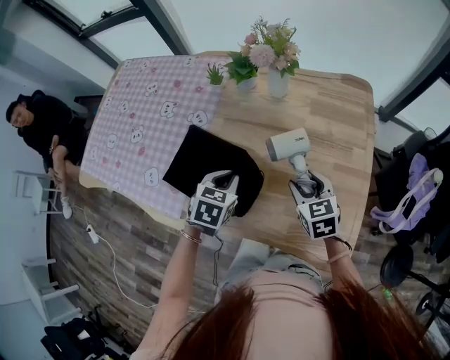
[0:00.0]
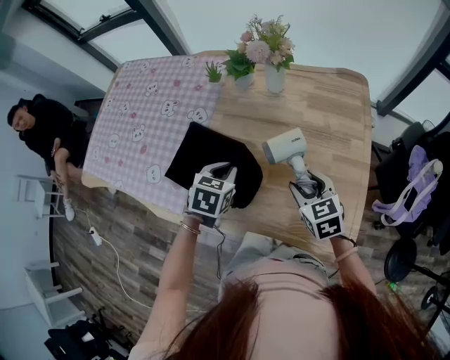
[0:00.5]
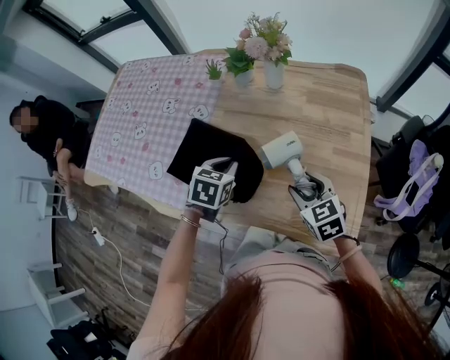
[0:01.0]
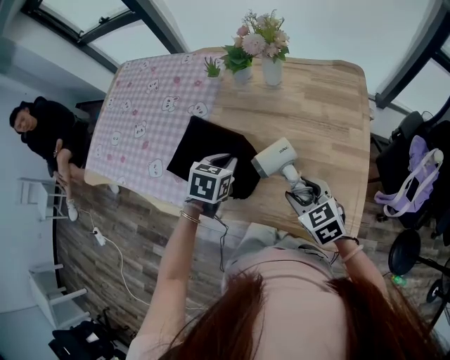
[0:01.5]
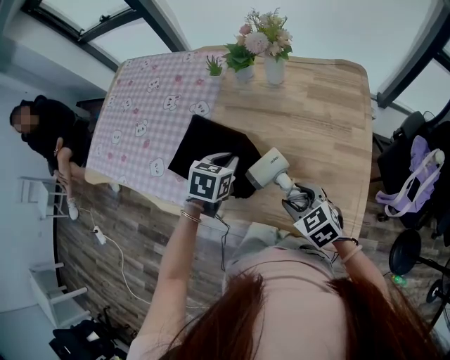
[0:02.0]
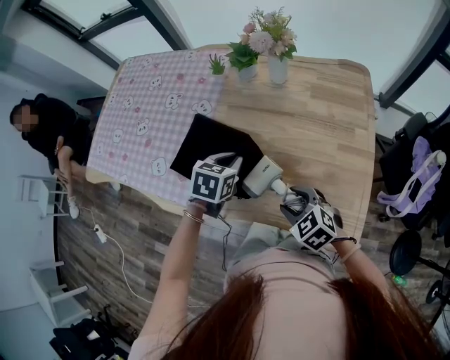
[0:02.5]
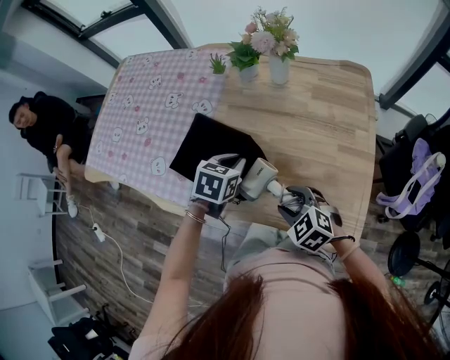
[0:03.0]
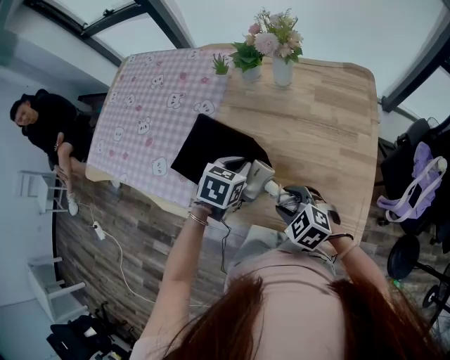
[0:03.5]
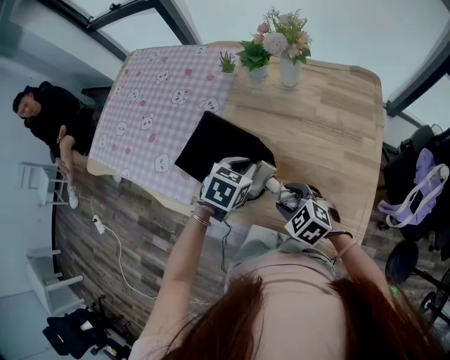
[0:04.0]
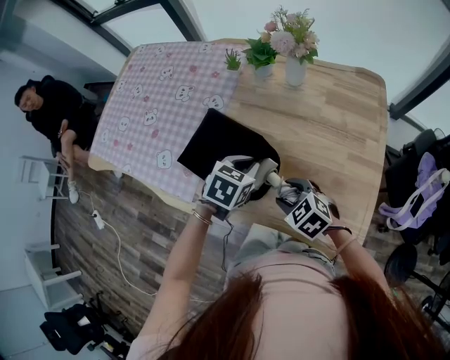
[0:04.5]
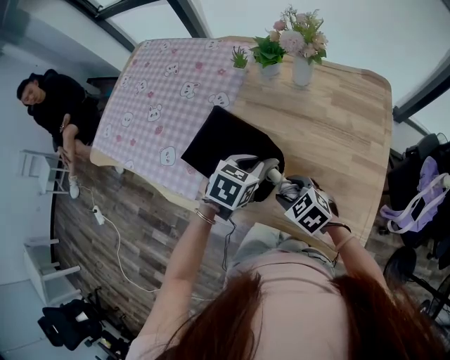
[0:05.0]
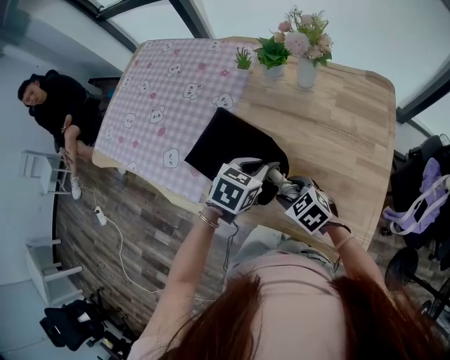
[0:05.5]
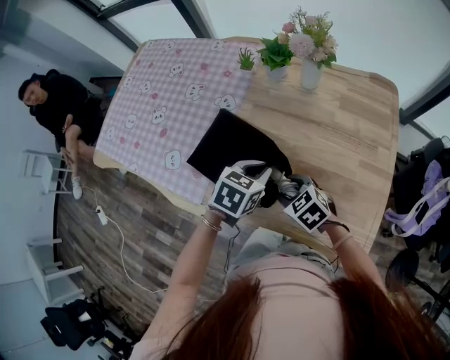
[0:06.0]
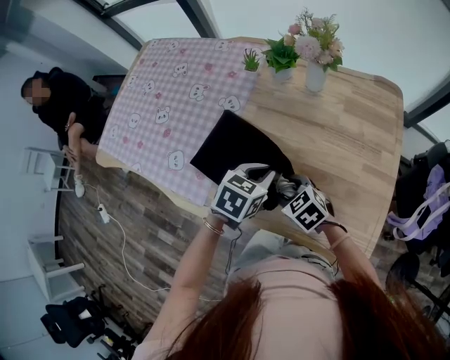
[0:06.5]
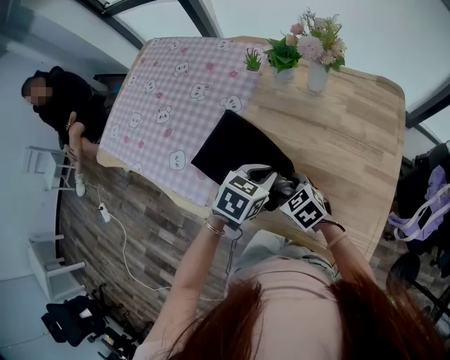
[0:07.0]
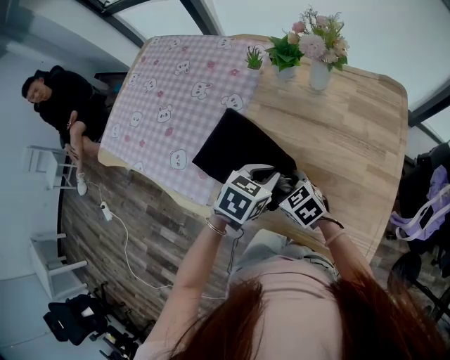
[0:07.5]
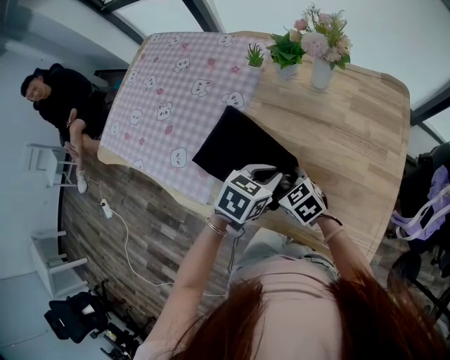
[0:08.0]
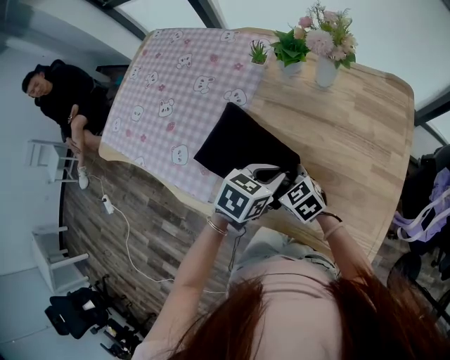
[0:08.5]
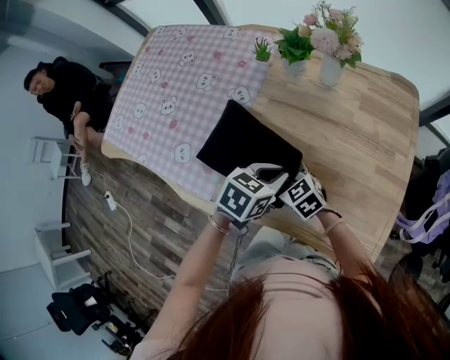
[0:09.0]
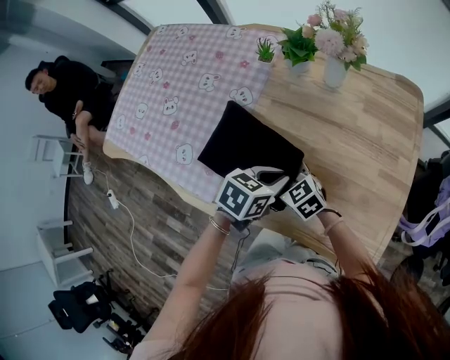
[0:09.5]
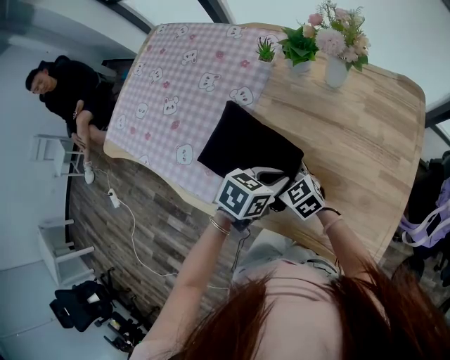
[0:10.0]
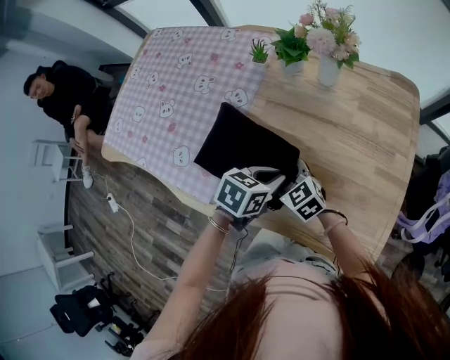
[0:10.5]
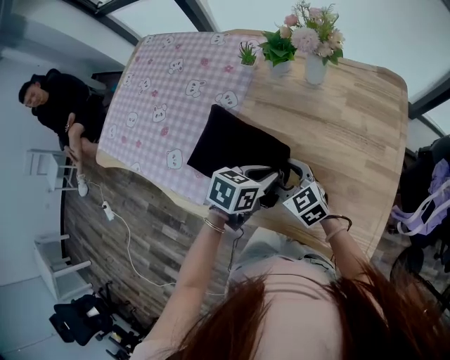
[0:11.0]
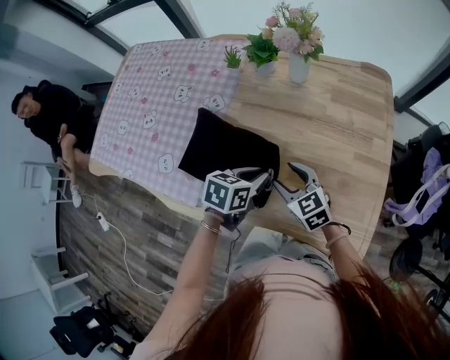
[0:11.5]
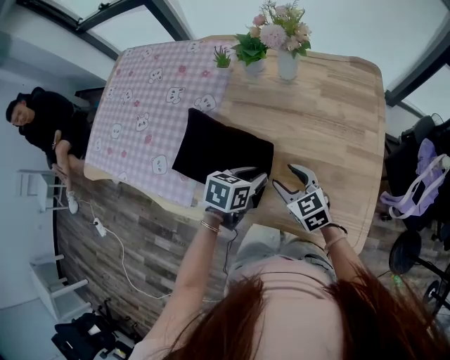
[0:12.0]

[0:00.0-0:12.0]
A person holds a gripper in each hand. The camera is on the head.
0:00.0 to 0:02.0: The right gripper is displaced backward by roughly 10 cm, and changes its angle by approximately 20 degrees.
0:02.0 to 0:04.0: The right gripper ends up roughly 5 cm from where it was.
0:04.0 to 0:06.0: The right gripper heads forward, covering approximately 5 cm.
0:06.0 to 0:08.0: The right gripper shifts by some 5 cm.
0:08.0 to 0:10.0: The right gripper shifts by about 5 cm.
0:10.0 to 0:12.0: The right gripper moves to the right, approximately 15 cm.

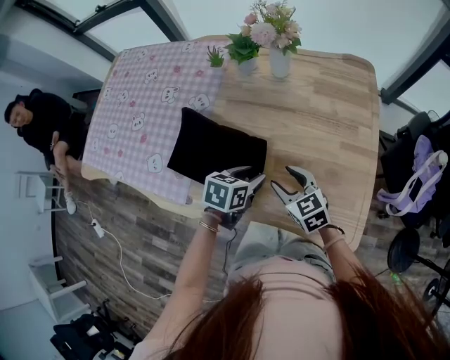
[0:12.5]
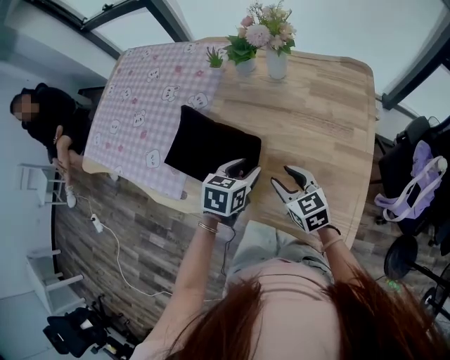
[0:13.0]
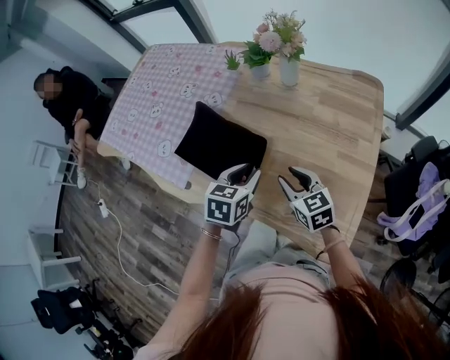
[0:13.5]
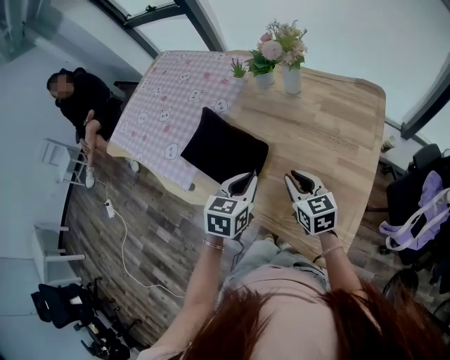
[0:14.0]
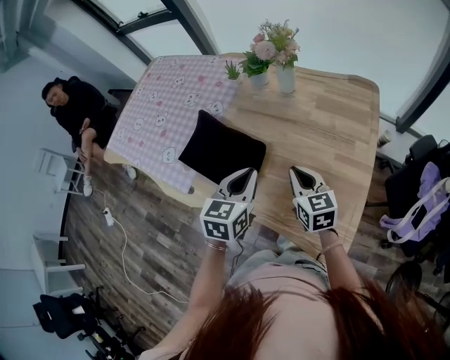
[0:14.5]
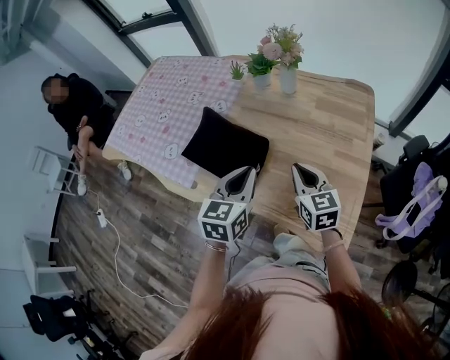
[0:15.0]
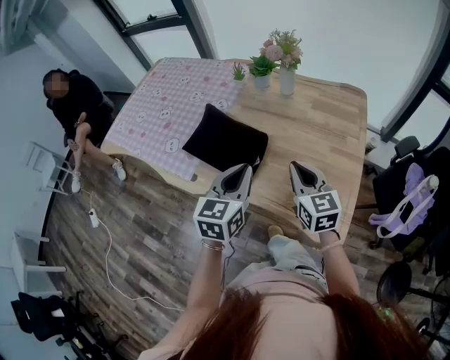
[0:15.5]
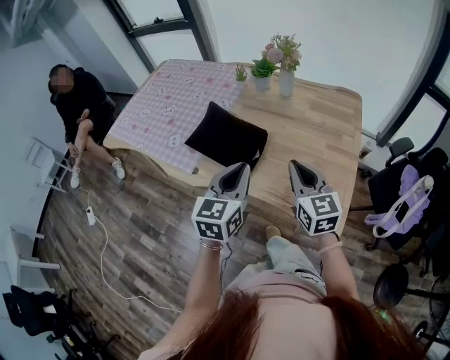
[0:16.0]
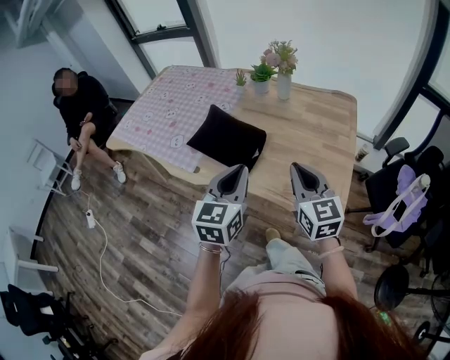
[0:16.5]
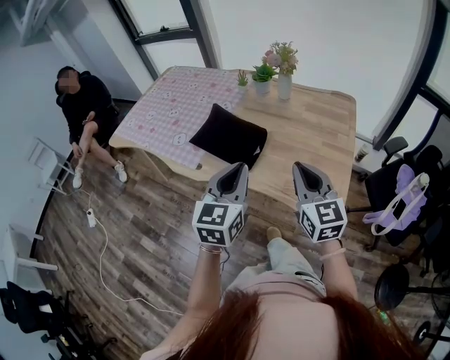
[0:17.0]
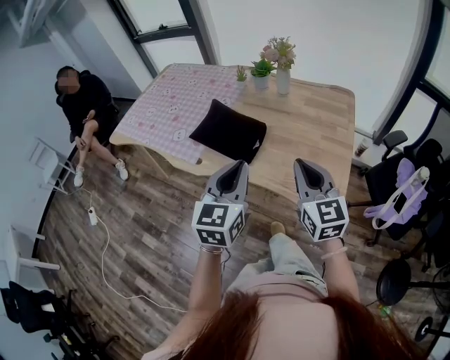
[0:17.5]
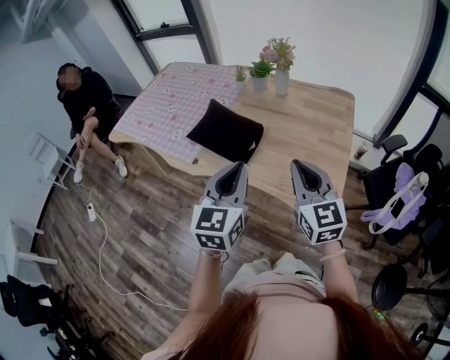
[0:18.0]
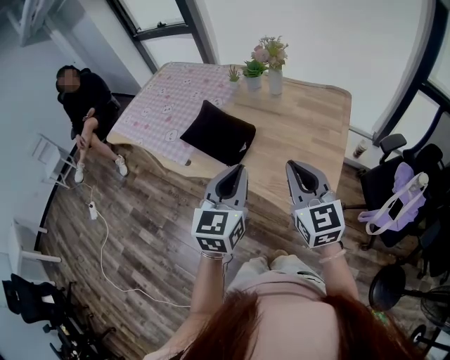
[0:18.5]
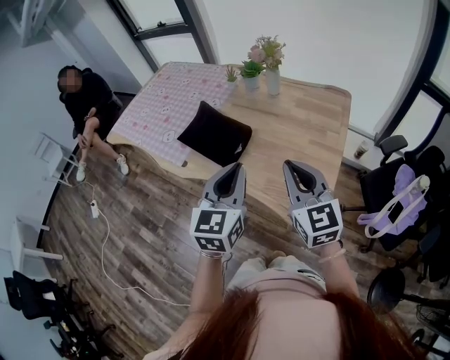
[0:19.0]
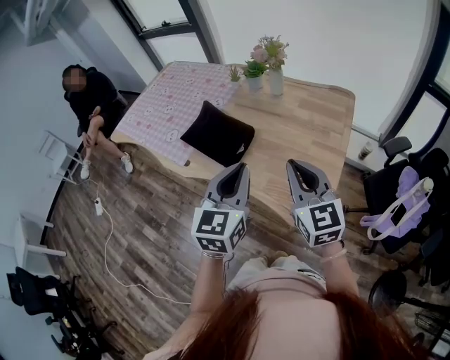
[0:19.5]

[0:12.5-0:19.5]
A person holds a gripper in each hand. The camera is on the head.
0:12.5 to 0:14.5: The right gripper goes about 10 cm to the right and upward, and closes. The left gripper heads upward, covering approximately 15 cm, swivels roughly 40 degrees, and closes.
0:14.5 to 0:16.0: The right gripper heads backward and upward, covering approximately 15 cm. The left gripper travels backward, upward and to the left by about 15 cm.
0:16.0 to 0:17.5: The left gripper is displaced backward by some 10 cm. The right gripper shifts about 10 cm backward and upward.
0:17.5 to 0:19.5: Both grippers travel together to the right, about 10 cm.

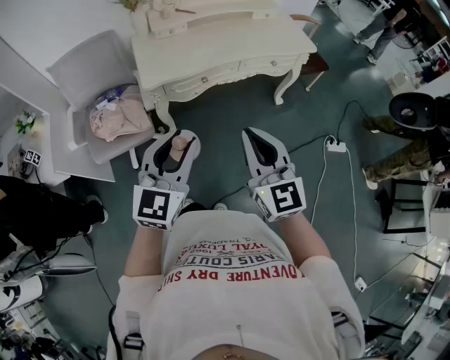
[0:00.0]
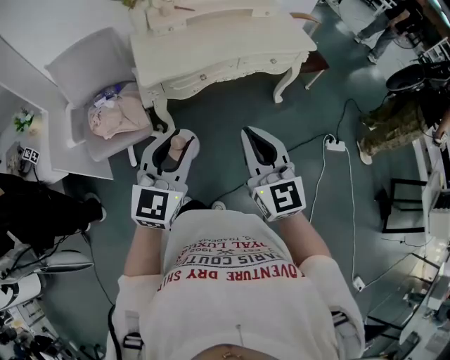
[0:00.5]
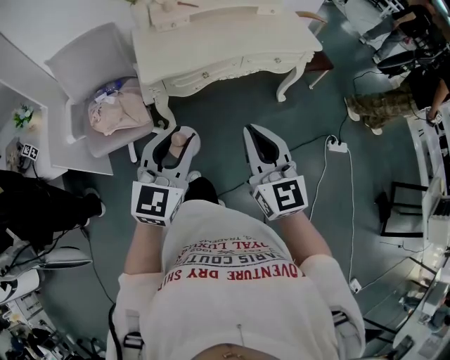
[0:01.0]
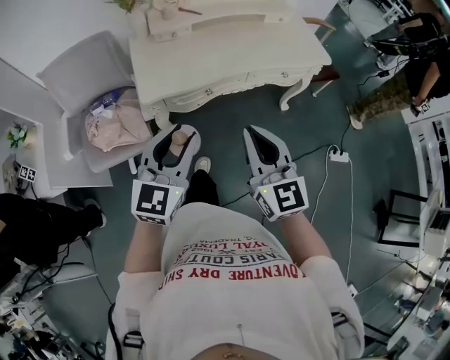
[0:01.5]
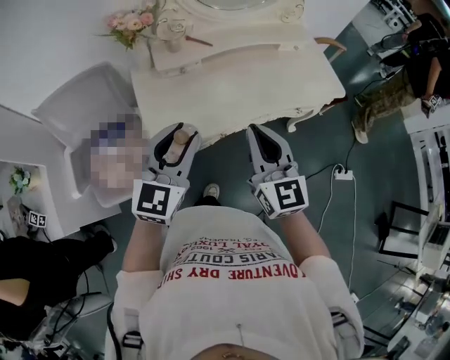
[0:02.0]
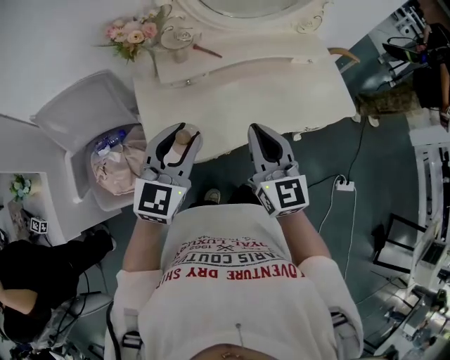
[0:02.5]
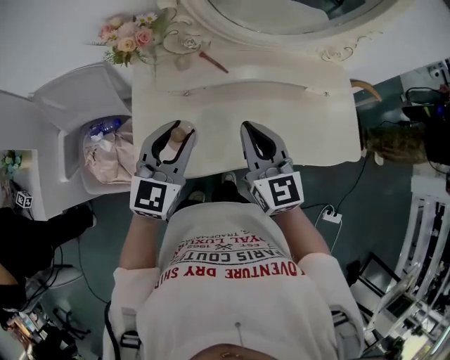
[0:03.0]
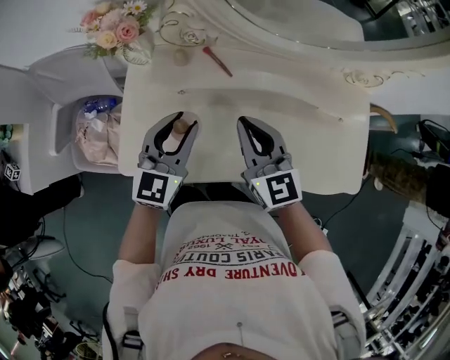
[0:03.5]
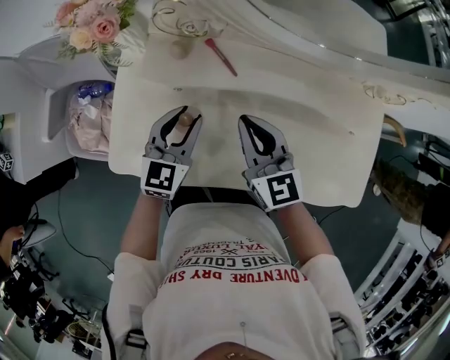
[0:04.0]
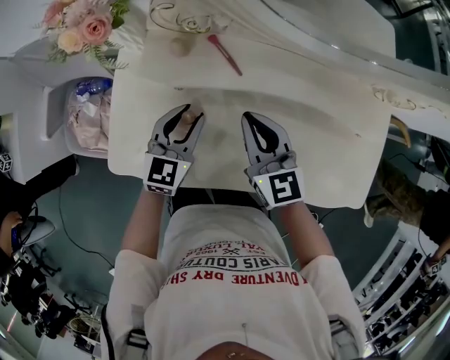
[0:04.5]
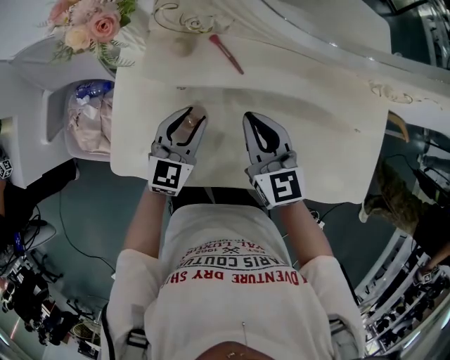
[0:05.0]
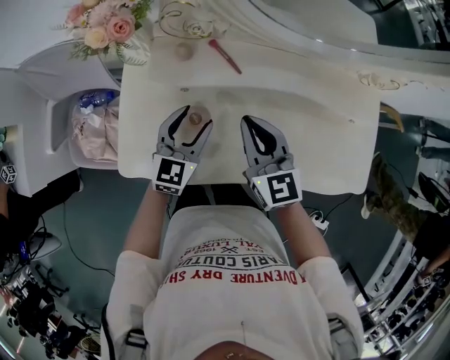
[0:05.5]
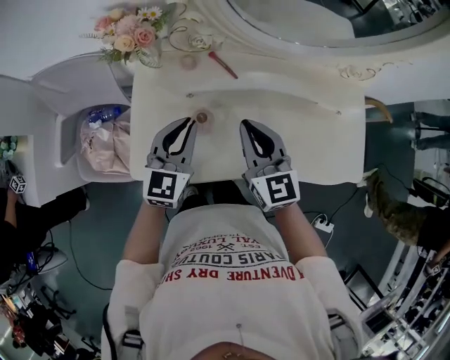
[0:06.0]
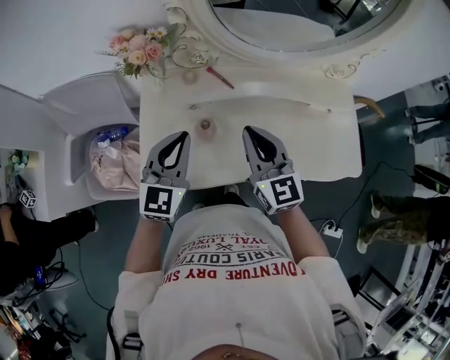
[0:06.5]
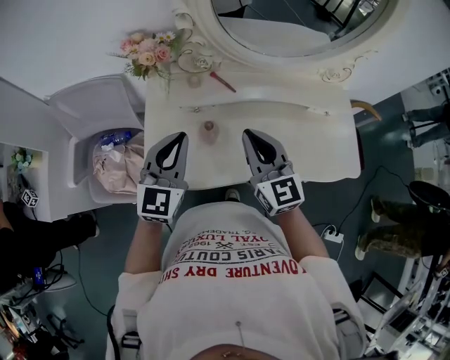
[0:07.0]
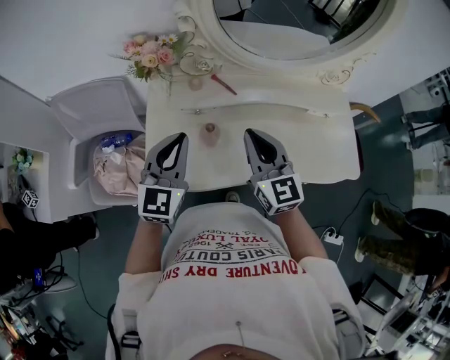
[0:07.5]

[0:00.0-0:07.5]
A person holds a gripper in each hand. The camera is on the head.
0:00.0 to 0:02.0: The two grippers go approximately 35 cm forward.
0:02.0 to 0:04.0: The right gripper moves approximately 40 cm, and changes its angle by roughly 40 degrees; the left gripper shifts by some 40 cm, and swivels approximately 30 degrees.
0:04.0 to 0:05.5: The left gripper opens up.
0:05.5 to 0:07.5: The left gripper shifts roughly 25 cm upward, backward and to the left, and closes up. The right gripper travels upward and backward by approximately 15 cm.
